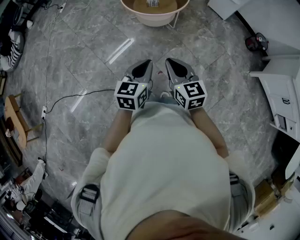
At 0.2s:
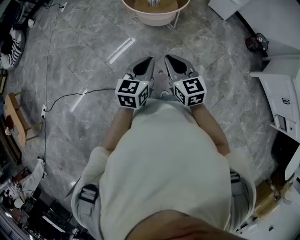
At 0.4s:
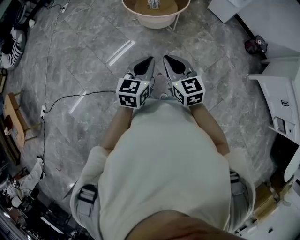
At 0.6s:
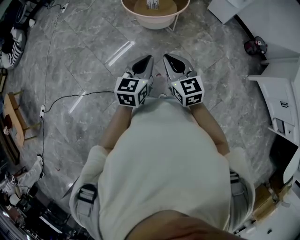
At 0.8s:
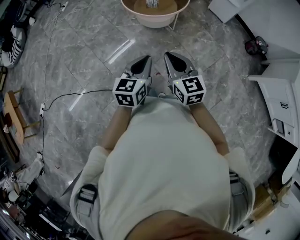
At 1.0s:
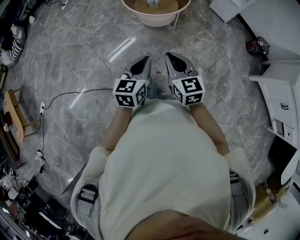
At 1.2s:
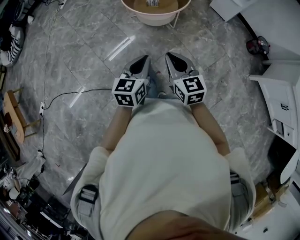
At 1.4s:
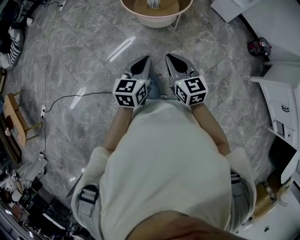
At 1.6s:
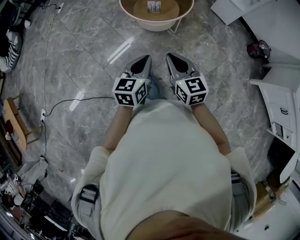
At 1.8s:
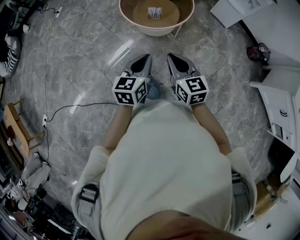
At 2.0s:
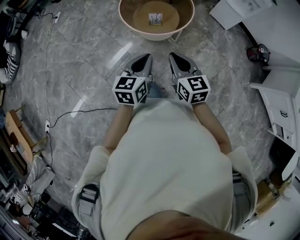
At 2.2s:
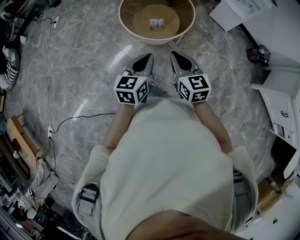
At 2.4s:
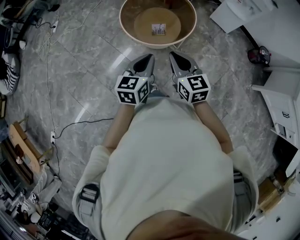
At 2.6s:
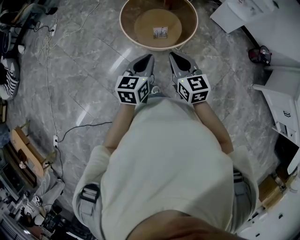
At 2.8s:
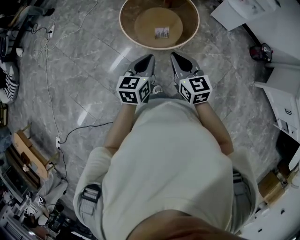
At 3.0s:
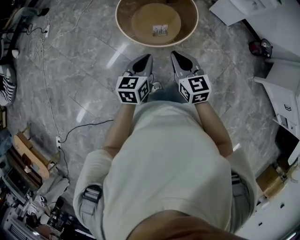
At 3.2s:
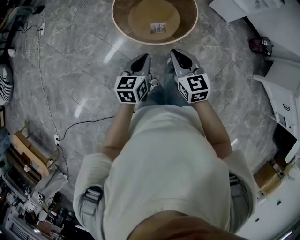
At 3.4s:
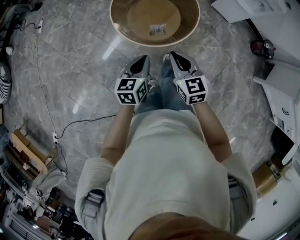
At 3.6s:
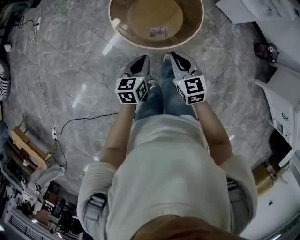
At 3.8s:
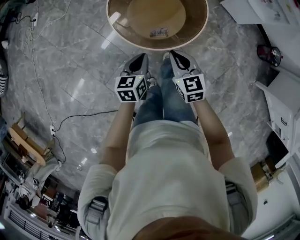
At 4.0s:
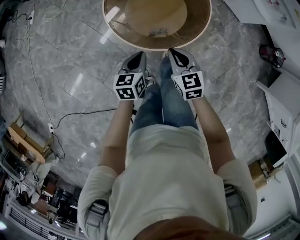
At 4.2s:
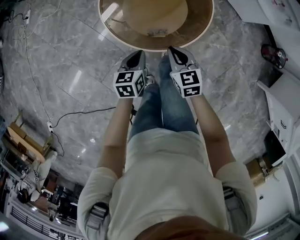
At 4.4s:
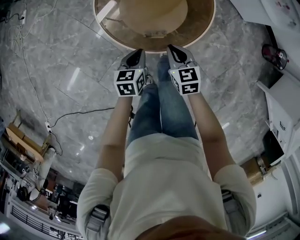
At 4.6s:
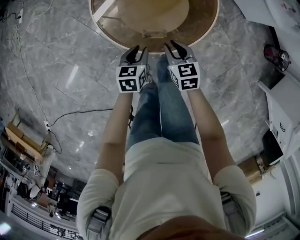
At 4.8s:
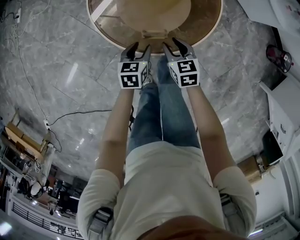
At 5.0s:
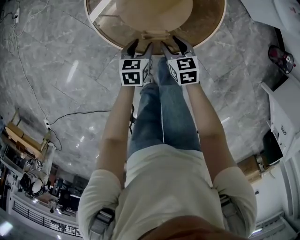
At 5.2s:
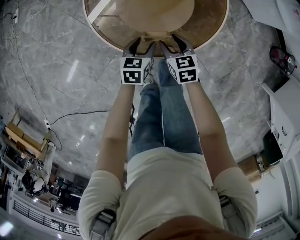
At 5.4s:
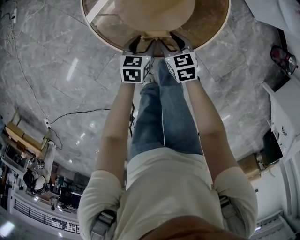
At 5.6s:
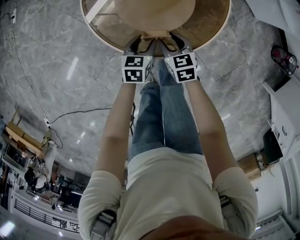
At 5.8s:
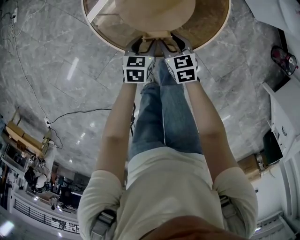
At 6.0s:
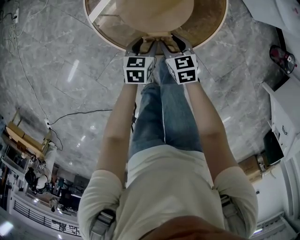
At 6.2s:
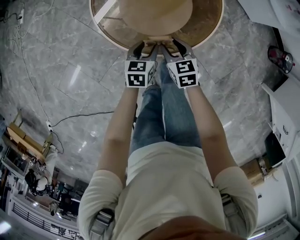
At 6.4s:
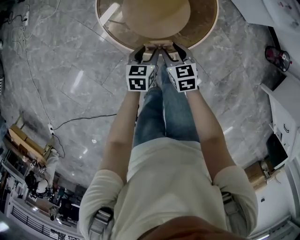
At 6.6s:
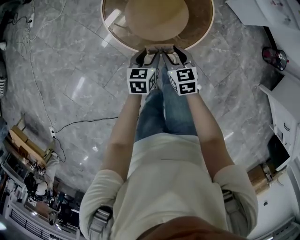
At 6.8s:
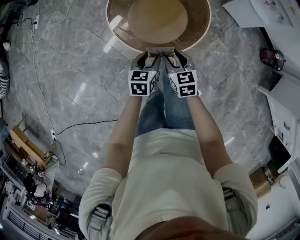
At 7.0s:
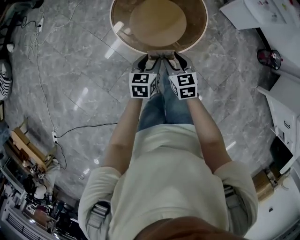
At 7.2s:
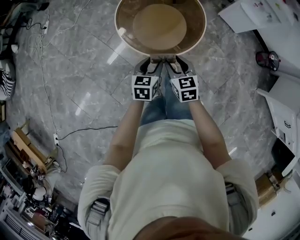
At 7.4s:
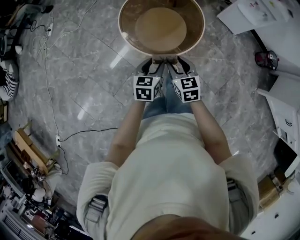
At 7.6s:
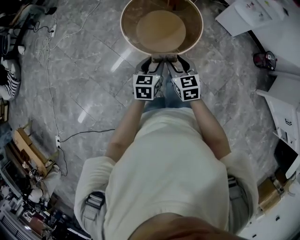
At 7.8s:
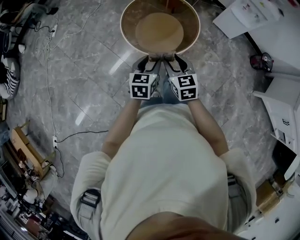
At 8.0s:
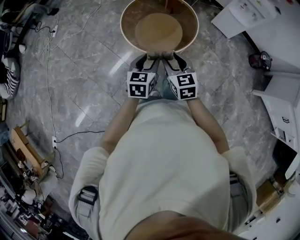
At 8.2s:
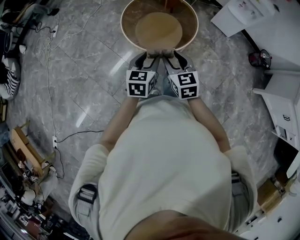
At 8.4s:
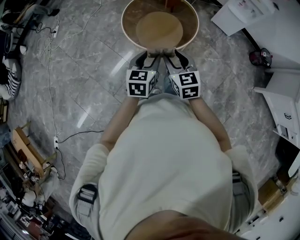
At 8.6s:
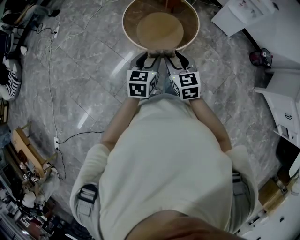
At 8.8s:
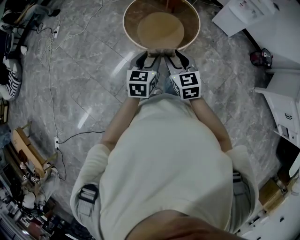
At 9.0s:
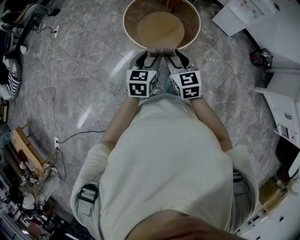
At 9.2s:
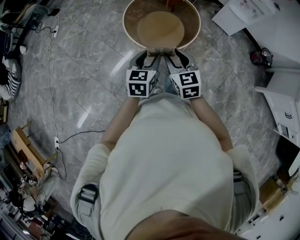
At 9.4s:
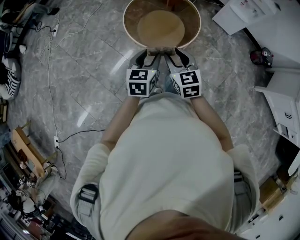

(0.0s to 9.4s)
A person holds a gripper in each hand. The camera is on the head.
0.0s - 1.6s: The grippers both shift forward by some 10 cm.
1.6s - 3.2s: Both grippers travel together forward, roughly 25 cm.
3.2s - 4.8s: Both grippers travel together downward and forward, approximately 35 cm. The left gripper rotates about 20 degrees, and opens up. Meanwhile the right gripper swivels about 20 degrees, and opens.
4.8s - 6.2s: The grippers make only small movements.
6.2s - 7.8s: The two grippers go approximately 30 cm upward and backward.
7.8s - 9.4s: The left gripper ends up roughly 5 cm from where it was, while the right gripper ends up approximately 5 cm from where it was.

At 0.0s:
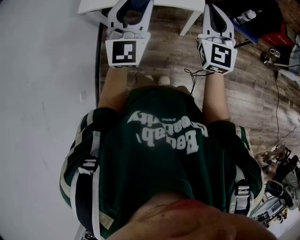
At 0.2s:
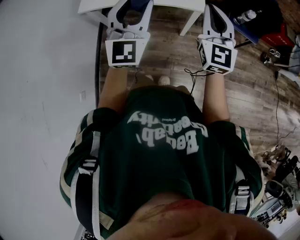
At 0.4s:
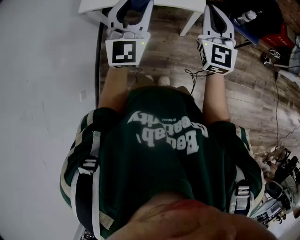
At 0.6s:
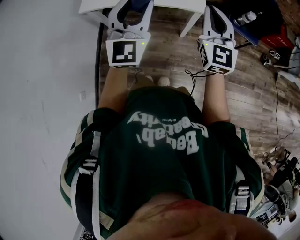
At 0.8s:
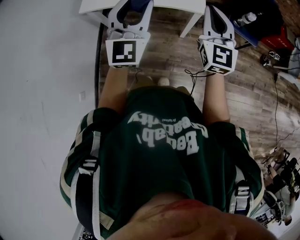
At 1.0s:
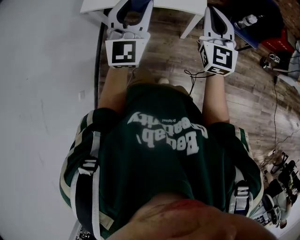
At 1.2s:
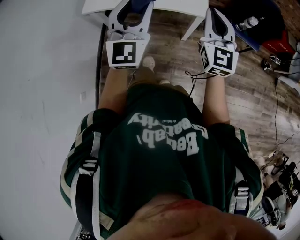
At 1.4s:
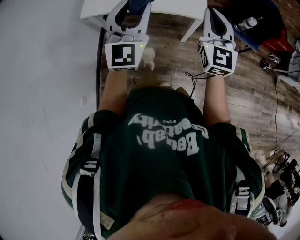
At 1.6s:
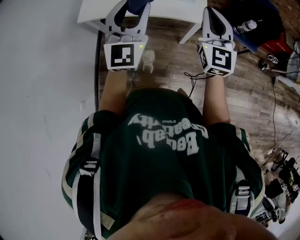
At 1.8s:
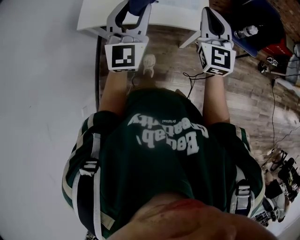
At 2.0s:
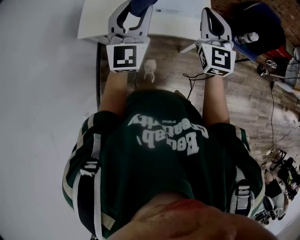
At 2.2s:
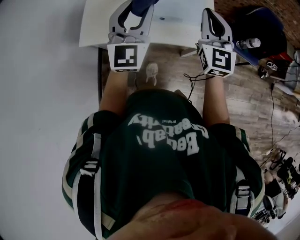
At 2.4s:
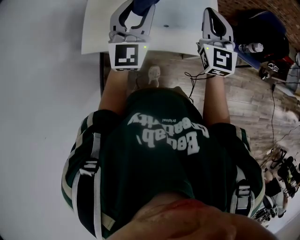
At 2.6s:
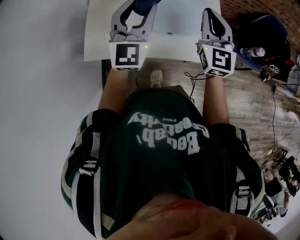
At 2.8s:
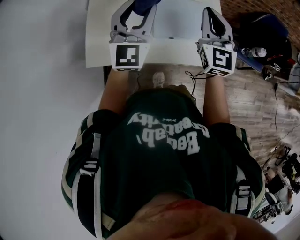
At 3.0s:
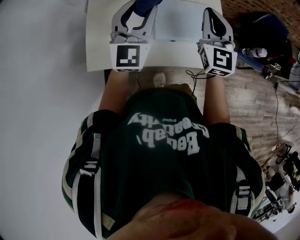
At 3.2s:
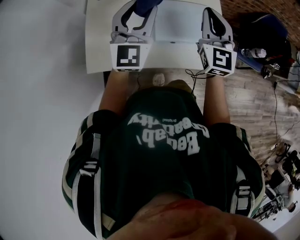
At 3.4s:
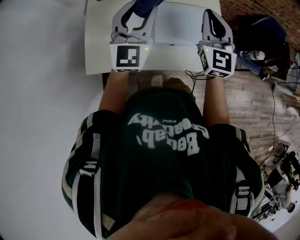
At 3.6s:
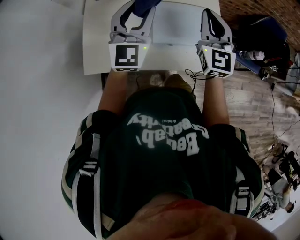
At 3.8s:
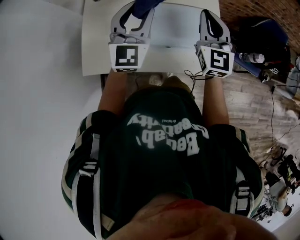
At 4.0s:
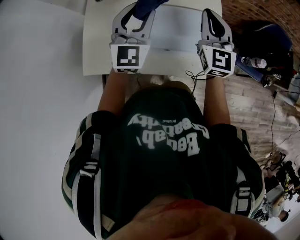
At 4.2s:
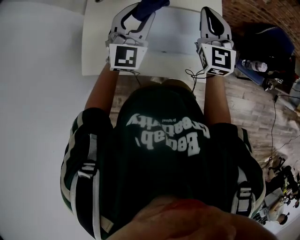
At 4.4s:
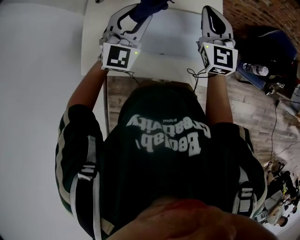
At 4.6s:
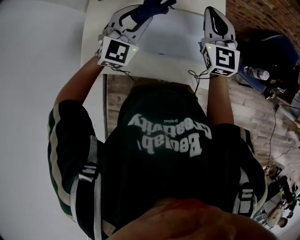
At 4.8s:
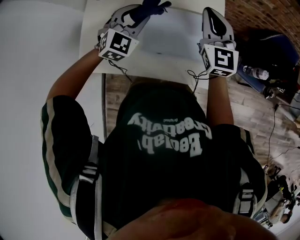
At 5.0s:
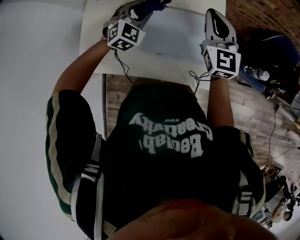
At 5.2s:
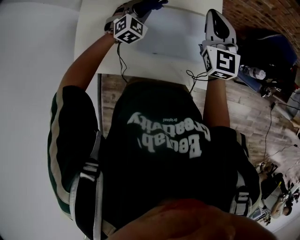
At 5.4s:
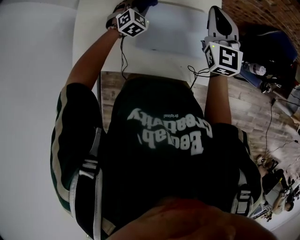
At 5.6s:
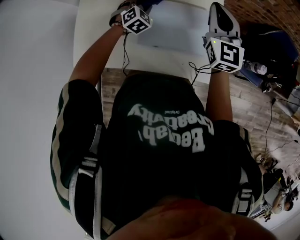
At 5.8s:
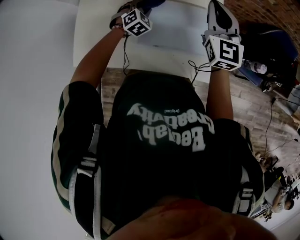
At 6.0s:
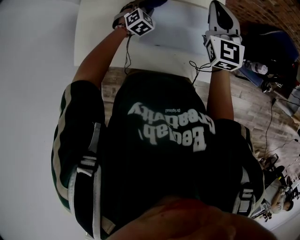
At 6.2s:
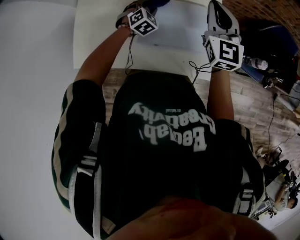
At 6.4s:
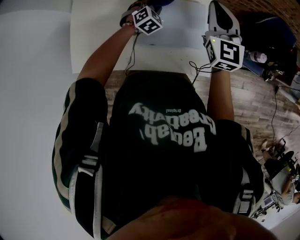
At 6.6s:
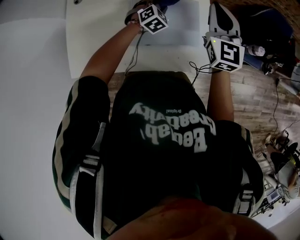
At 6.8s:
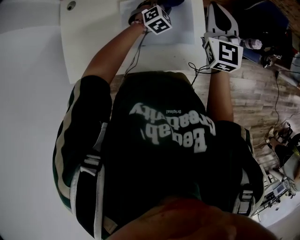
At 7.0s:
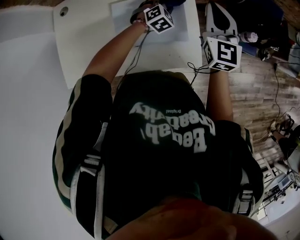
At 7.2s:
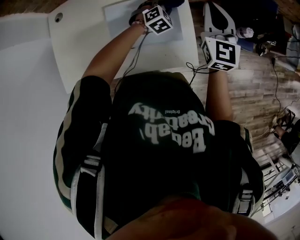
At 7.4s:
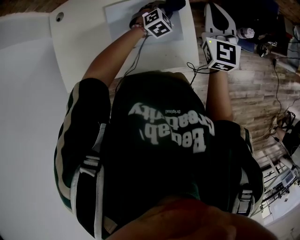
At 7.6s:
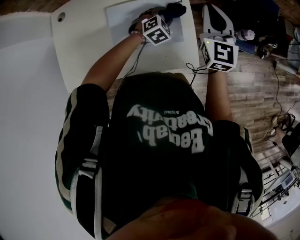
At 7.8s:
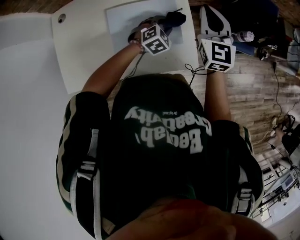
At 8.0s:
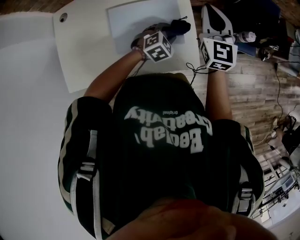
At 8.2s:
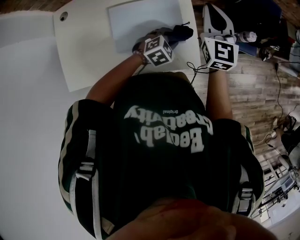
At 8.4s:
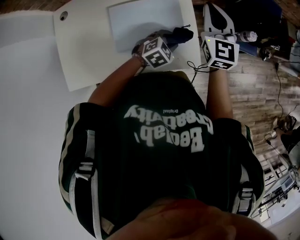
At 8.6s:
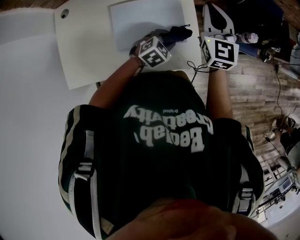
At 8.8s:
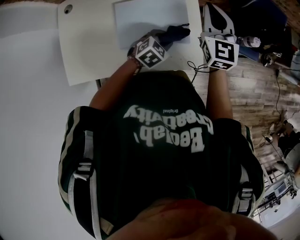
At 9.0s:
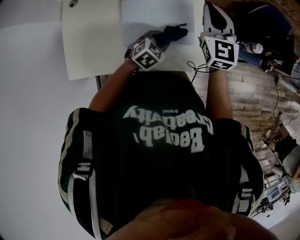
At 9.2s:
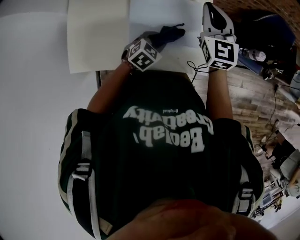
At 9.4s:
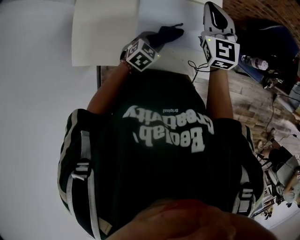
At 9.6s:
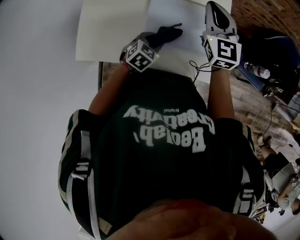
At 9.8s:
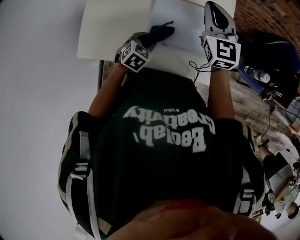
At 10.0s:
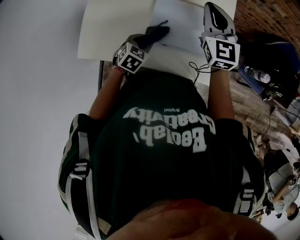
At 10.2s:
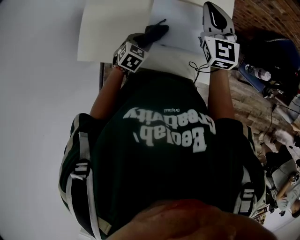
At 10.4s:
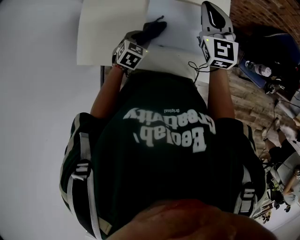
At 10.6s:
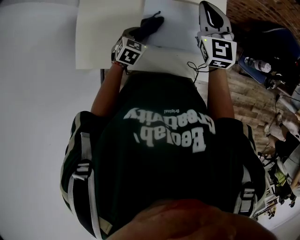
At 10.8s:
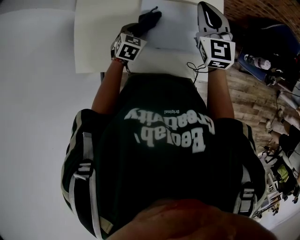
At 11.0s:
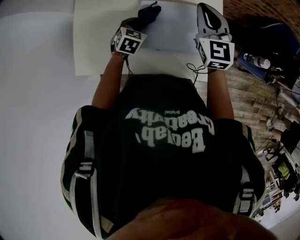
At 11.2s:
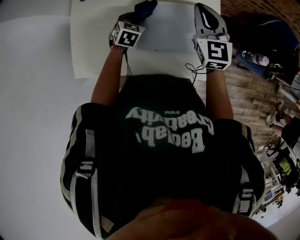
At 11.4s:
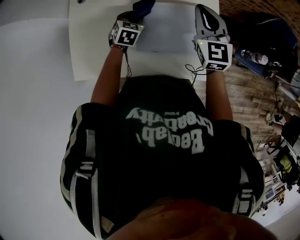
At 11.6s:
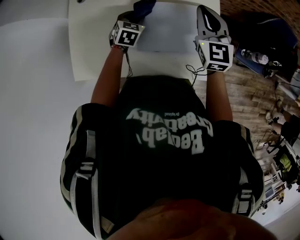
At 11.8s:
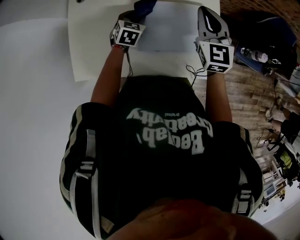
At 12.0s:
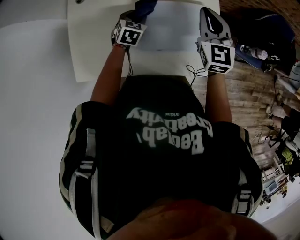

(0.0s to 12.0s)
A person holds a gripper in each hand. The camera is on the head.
0.0s - 1.6s: Both grippers move forward, roughly 5 cm.
1.6s - 3.0s: The grippers both shift forward by roughly 35 cm.
3.0s - 4.4s: The right gripper shifts about 10 cm forward. The left gripper heads forward and to the right, covering about 10 cm.
4.4s - 6.0s: The left gripper shifts approximately 25 cm downward, and tilts its fingers about 40 degrees downward.
6.0s - 7.6s: The left gripper heads to the right, covering roughly 25 cm, and turns by about 20 degrees. The right gripper travels to the right by approximately 10 cm.
7.6s - 9.0s: The right gripper moves to the left, roughly 5 cm. The left gripper moves backward, roughly 10 cm, and changes its angle by about 20 degrees.
9.0s - 10.4s: The right gripper moves to the left, some 10 cm; the left gripper is displaced to the left by some 20 cm, and swivels about 30 degrees.
10.4s - 12.0s: The left gripper moves forward, approximately 15 cm.

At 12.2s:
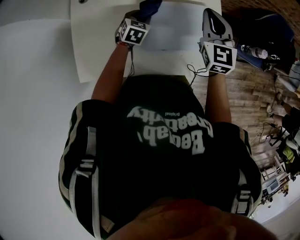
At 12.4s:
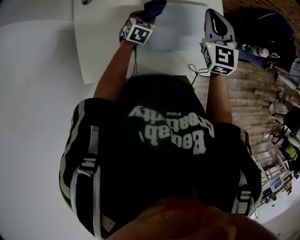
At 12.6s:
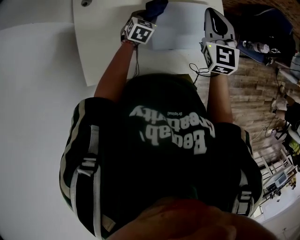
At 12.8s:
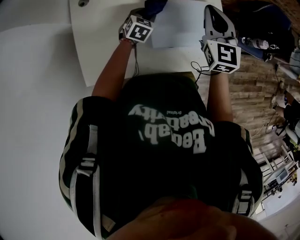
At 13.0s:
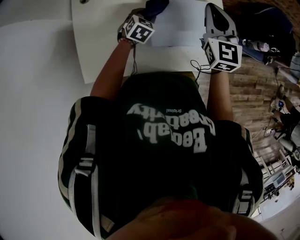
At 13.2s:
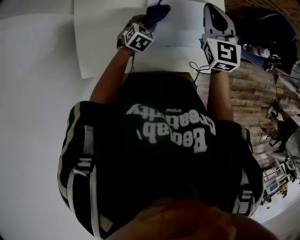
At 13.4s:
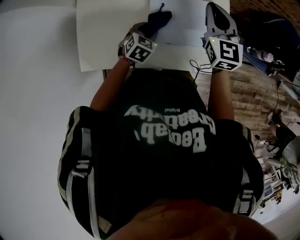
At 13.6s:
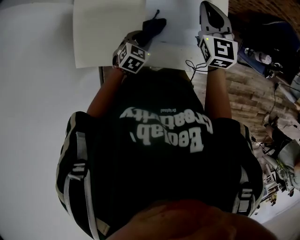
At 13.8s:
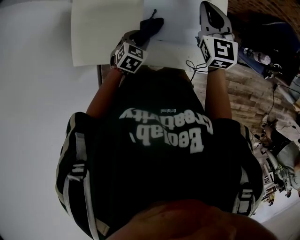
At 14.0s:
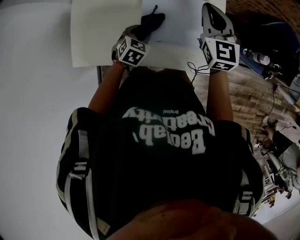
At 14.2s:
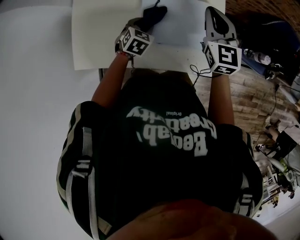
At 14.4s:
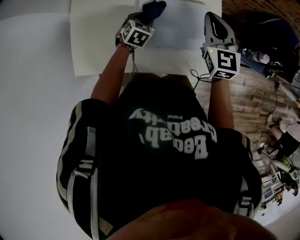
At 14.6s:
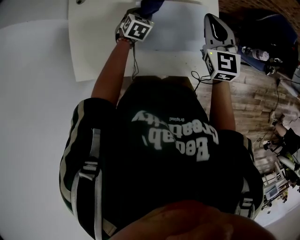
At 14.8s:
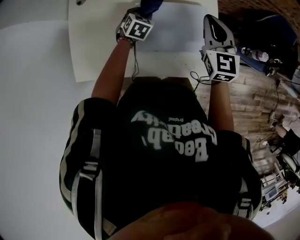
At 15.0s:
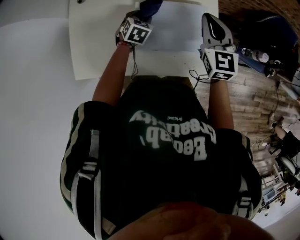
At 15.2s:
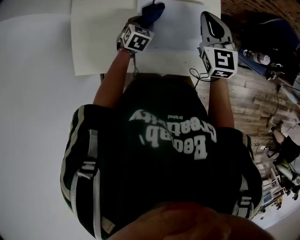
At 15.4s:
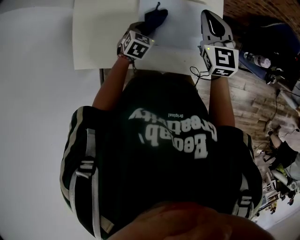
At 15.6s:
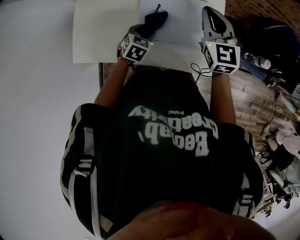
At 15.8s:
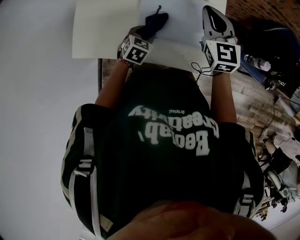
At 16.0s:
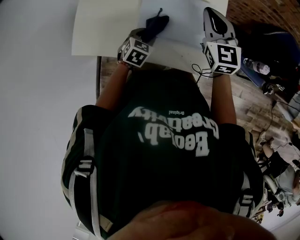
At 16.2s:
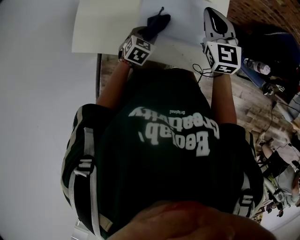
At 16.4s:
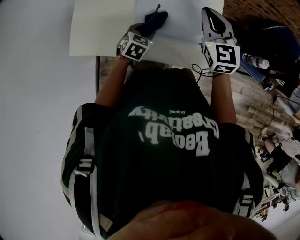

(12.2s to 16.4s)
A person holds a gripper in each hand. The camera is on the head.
12.2s - 13.6s: The left gripper is displaced backward by roughly 15 cm.
13.6s - 15.0s: The right gripper is displaced to the right by about 5 cm, while the left gripper goes some 15 cm forward.
15.0s - 16.4s: The left gripper heads backward, covering approximately 15 cm.
